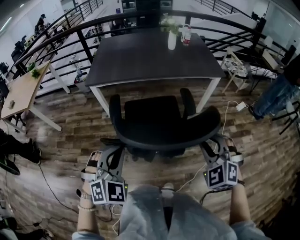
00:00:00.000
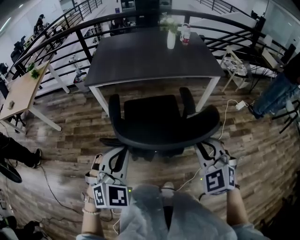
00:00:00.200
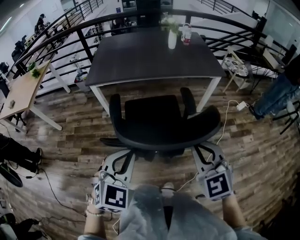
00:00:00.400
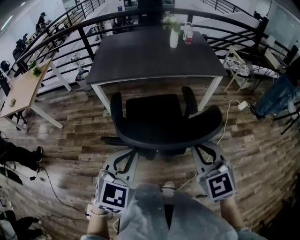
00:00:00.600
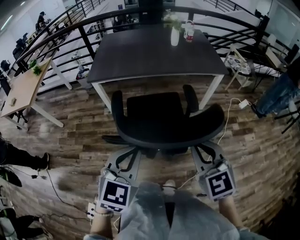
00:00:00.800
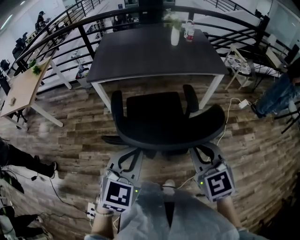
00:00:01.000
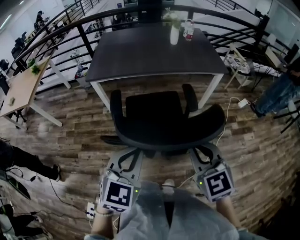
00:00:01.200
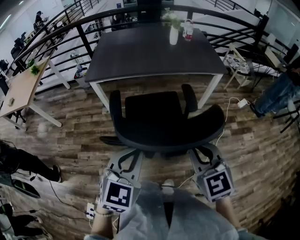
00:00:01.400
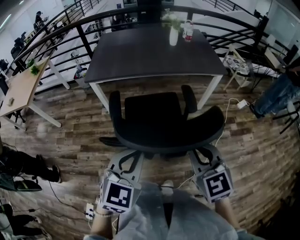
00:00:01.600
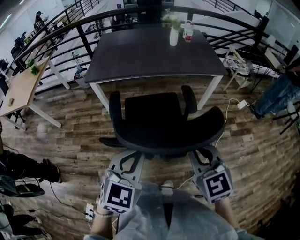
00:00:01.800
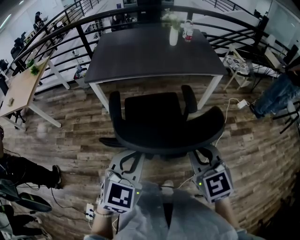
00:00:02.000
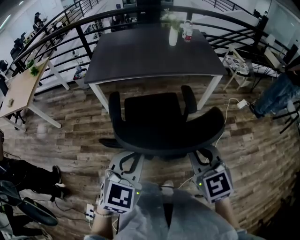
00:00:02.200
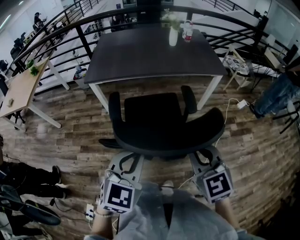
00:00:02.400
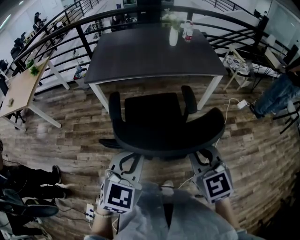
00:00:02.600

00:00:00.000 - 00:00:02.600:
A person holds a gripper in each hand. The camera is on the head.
00:00:00.000 - 00:00:01.200: The left gripper travels to the right by roughly 5 cm, and turns by about 30 degrees. The right gripper travels to the left by approximately 5 cm, turns by some 40 degrees, and closes.
00:00:01.200 - 00:00:02.600: Both grippers stay put.

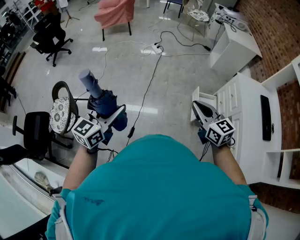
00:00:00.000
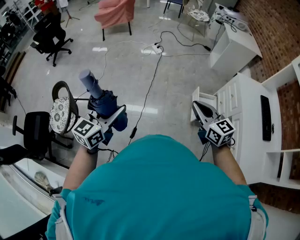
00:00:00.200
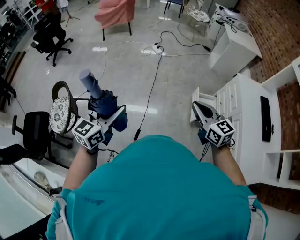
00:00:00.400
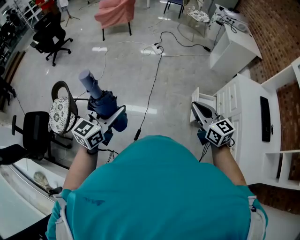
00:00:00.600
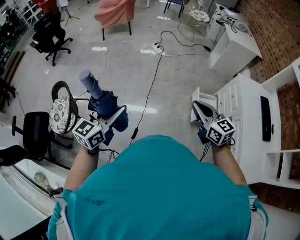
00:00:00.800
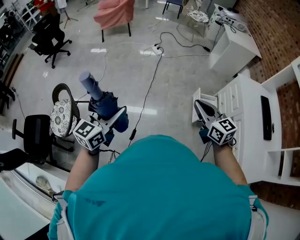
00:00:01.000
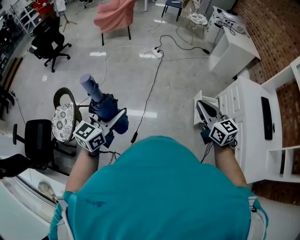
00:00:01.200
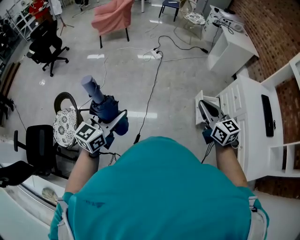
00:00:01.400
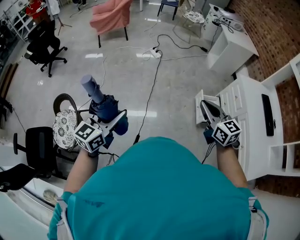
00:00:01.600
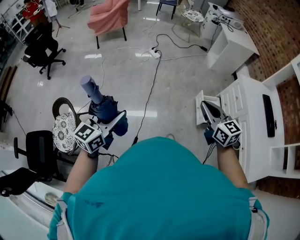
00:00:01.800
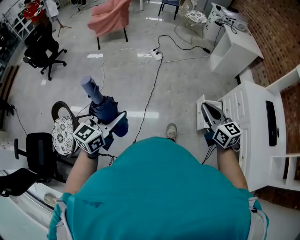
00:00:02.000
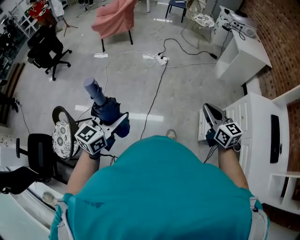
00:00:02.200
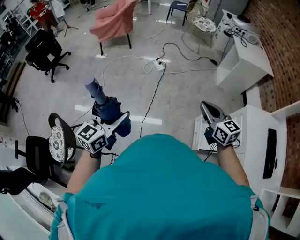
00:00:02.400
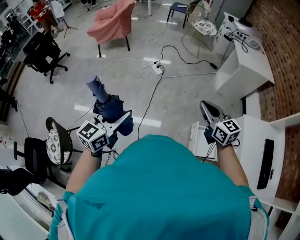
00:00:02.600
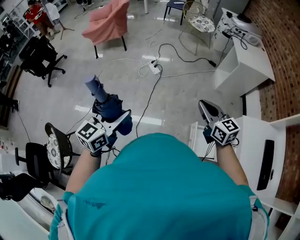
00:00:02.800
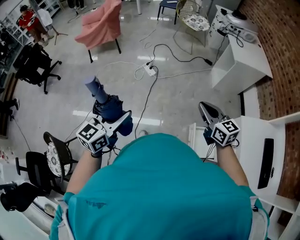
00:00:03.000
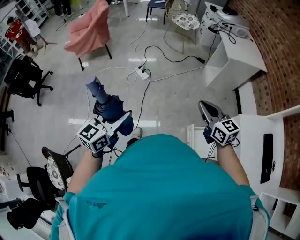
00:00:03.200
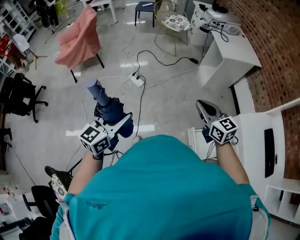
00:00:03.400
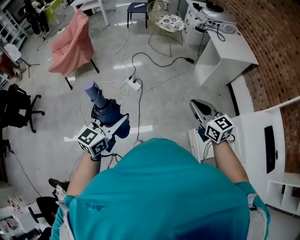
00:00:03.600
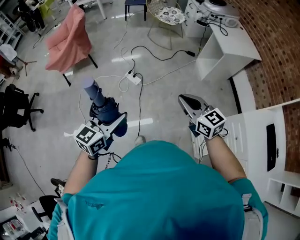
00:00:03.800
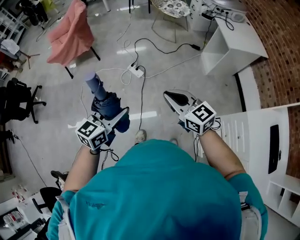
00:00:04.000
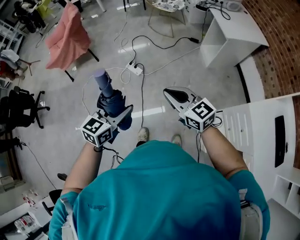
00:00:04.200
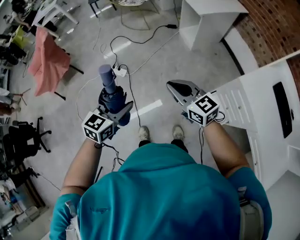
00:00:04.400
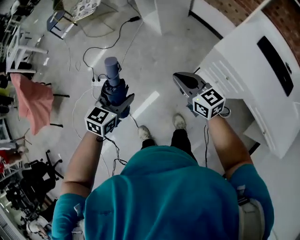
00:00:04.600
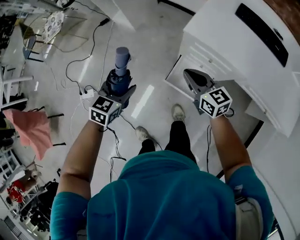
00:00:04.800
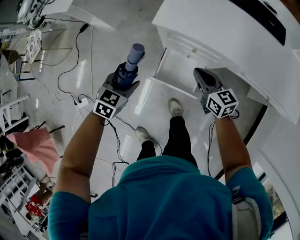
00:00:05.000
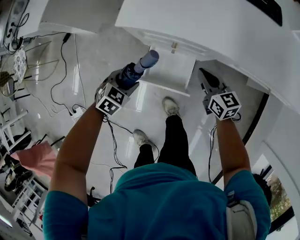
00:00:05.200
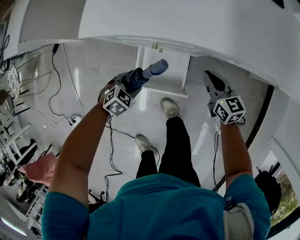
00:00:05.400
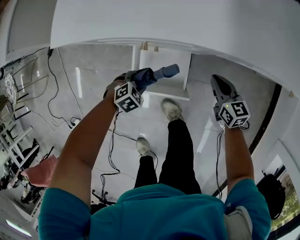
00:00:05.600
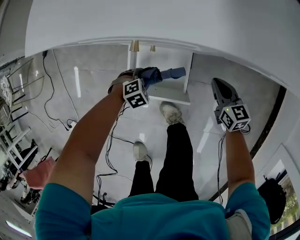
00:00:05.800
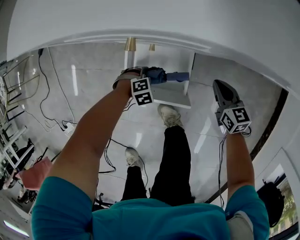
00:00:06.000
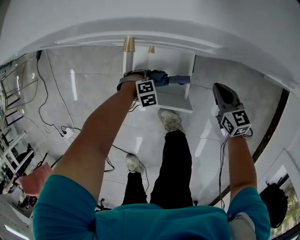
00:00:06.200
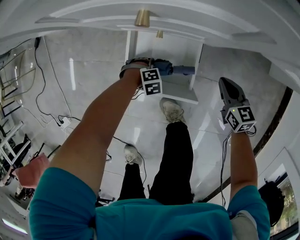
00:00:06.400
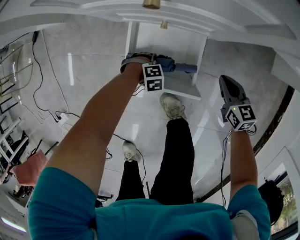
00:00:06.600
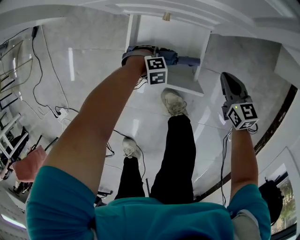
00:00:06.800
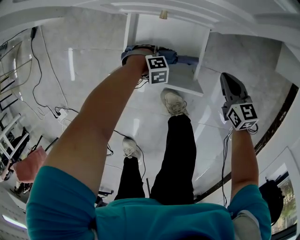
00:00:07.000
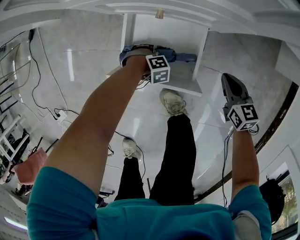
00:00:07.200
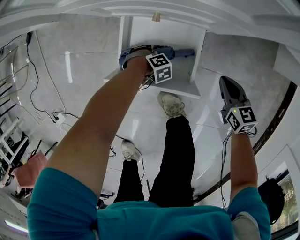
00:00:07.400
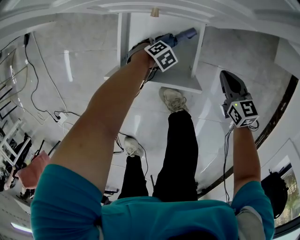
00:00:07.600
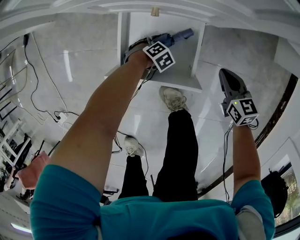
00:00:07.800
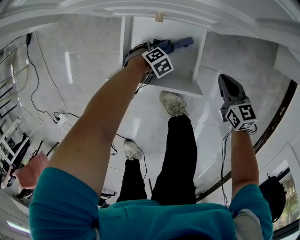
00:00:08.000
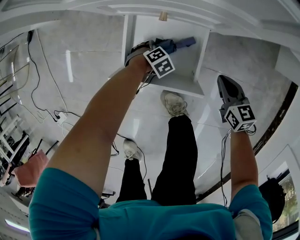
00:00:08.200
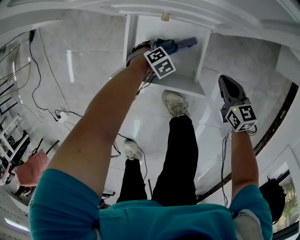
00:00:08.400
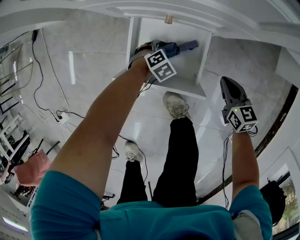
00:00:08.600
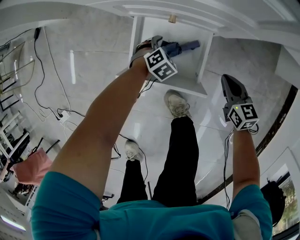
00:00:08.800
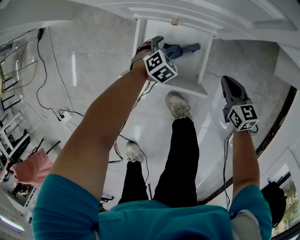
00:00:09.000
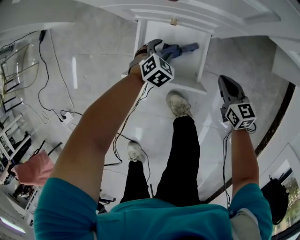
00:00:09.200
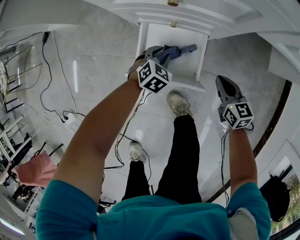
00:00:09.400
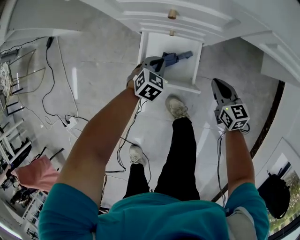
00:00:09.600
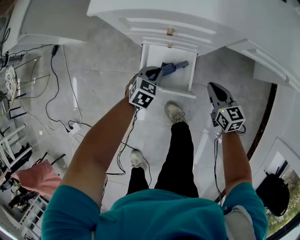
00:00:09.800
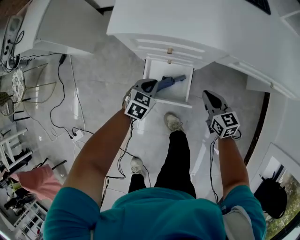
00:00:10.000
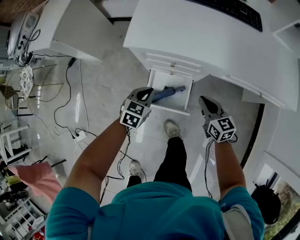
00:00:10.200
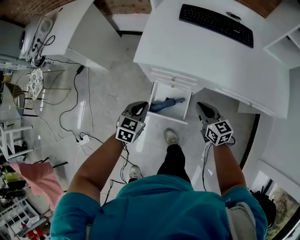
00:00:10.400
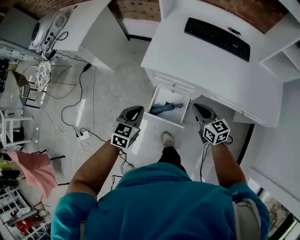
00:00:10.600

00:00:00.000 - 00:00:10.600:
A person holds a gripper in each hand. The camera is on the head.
00:00:00.000 - 00:00:01.600: The two grippers go roughly 10 cm to the left.
00:00:01.600 - 00:00:03.000: The pair of grippers is taken forward and to the right, about 50 cm.
00:00:03.000 - 00:00:04.600: The right gripper changes place by about 20 cm, and swivels roughly 30 degrees; the left gripper changes place by some 40 cm, and rotates about 50 degrees.
00:00:04.600 - 00:00:06.000: The two grippers travel together, some 50 cm. Both grippers travel together downward, about 60 cm. The left gripper angles its fingers downward, by approximately 50 degrees. Meanwhile the right gripper turns by some 60 degrees.
00:00:06.000 - 00:00:07.600: The left gripper travels downward by roughly 10 cm, and turns by roughly 20 degrees, while the right gripper goes about 5 cm downward.
00:00:07.600 - 00:00:09.000: The left gripper travels upward by about 10 cm, and swivels some 30 degrees.
00:00:09.000 - 00:00:10.600: Both grippers travel together upward, approximately 50 cm. The left gripper rotates roughly 40 degrees, and closes.

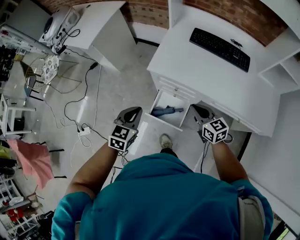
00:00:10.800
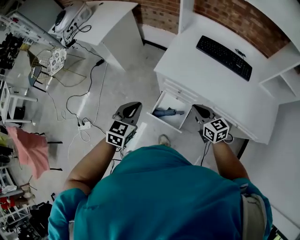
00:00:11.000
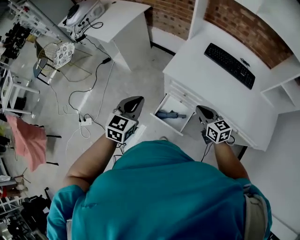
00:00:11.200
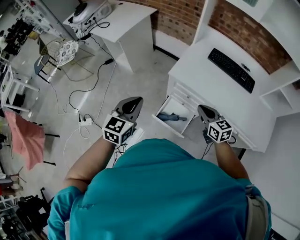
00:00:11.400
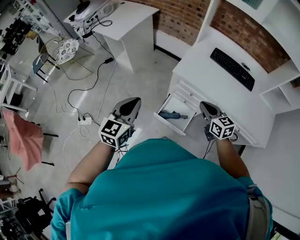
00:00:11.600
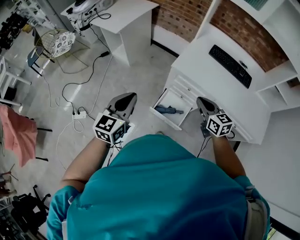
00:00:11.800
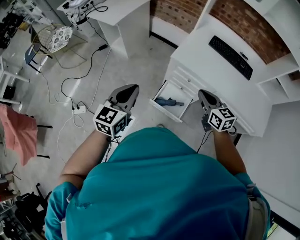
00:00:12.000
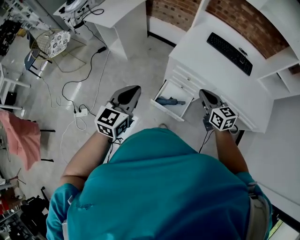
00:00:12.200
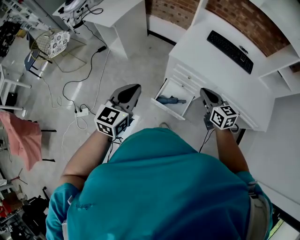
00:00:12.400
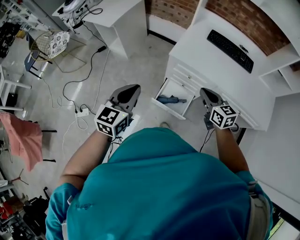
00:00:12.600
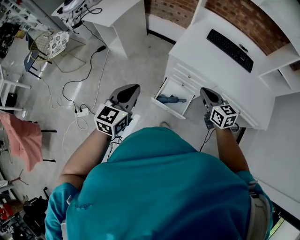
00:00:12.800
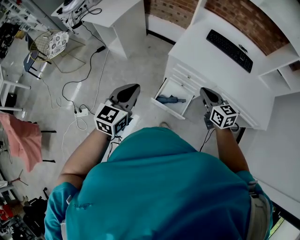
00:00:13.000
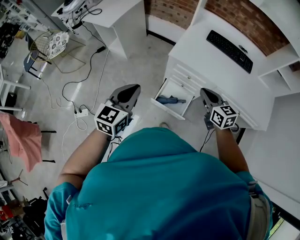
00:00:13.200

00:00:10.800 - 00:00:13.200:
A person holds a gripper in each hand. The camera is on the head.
00:00:10.800 - 00:00:12.000: The right gripper goes roughly 15 cm upward and to the left. The left gripper heads to the left, upward and backward, covering some 20 cm, and swivels some 20 degrees.
00:00:12.000 - 00:00:13.200: The grippers stay close to where they were, moving slightly.

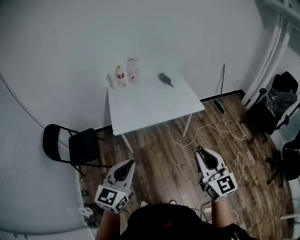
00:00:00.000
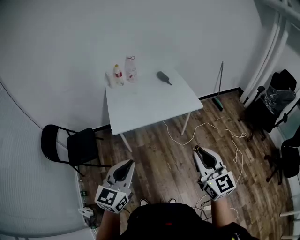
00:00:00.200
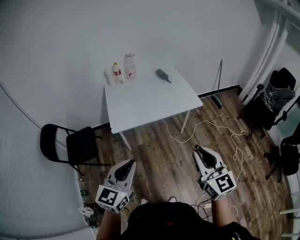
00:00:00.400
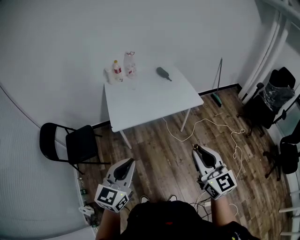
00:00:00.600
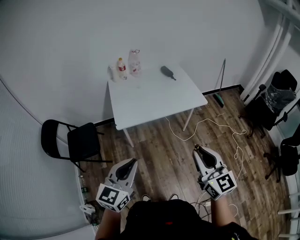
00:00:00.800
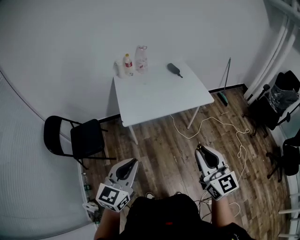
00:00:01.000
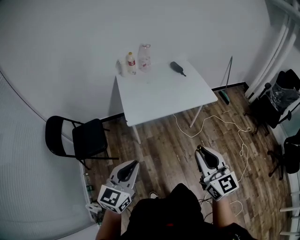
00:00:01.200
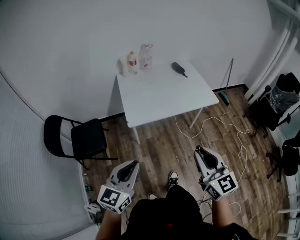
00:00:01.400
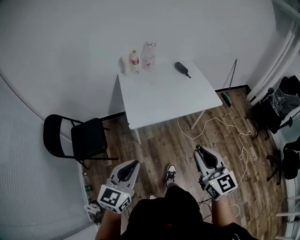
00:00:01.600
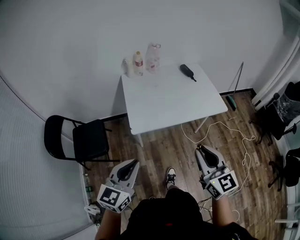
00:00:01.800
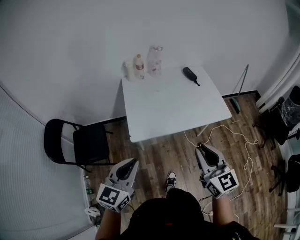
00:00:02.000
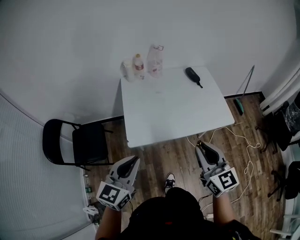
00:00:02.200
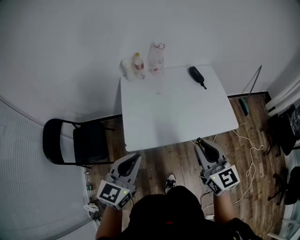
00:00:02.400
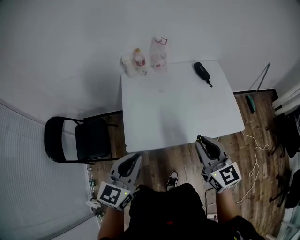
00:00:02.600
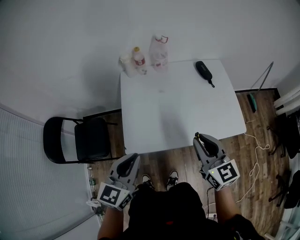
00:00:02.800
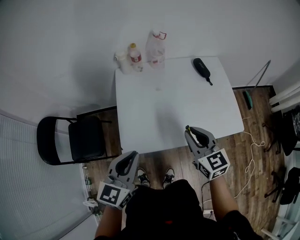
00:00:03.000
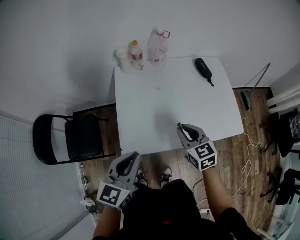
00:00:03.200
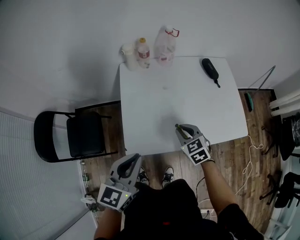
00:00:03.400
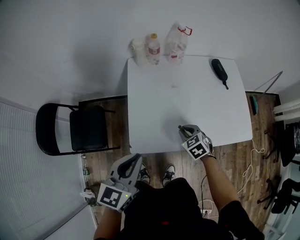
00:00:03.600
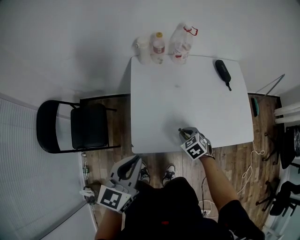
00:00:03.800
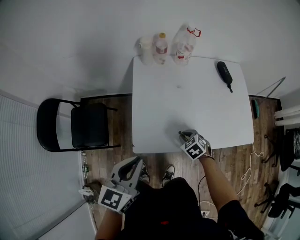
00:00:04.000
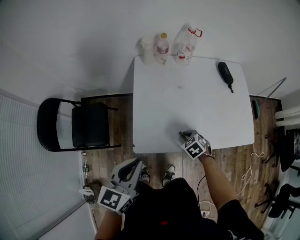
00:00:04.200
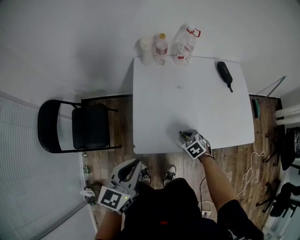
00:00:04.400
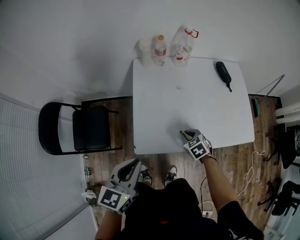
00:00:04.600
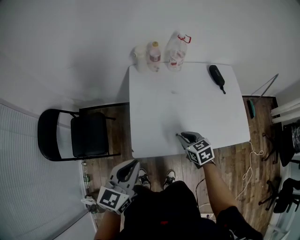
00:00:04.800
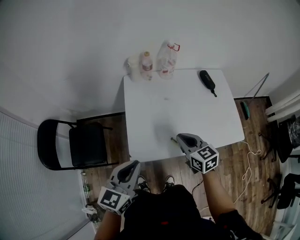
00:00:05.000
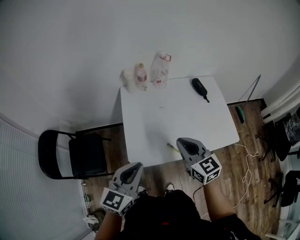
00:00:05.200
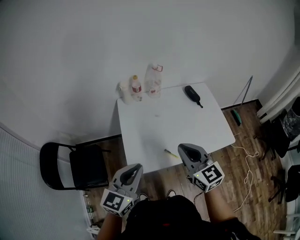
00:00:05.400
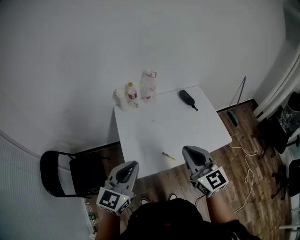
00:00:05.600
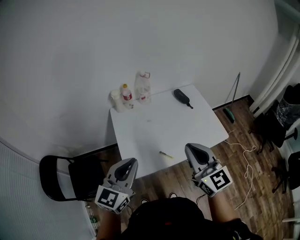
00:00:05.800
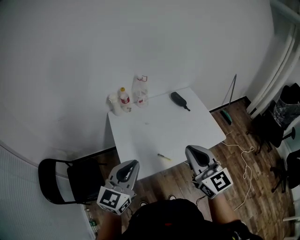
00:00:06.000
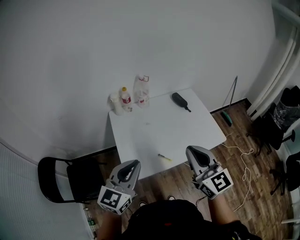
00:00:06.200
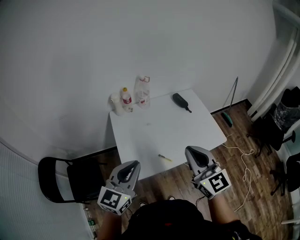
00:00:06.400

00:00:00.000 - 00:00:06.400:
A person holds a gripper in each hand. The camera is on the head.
00:00:00.000 - 00:00:01.600: The two grippers go about 15 cm to the left.
00:00:01.600 - 00:00:03.200: The left gripper is displaced forward by some 35 cm, while the right gripper is displaced forward and downward by approximately 50 cm, and changes its angle by some 30 degrees.
00:00:03.200 - 00:00:04.800: The left gripper goes some 10 cm to the left. The right gripper goes roughly 10 cm downward and to the left.
00:00:04.800 - 00:00:06.400: The left gripper shifts roughly 15 cm upward and to the right, and rotates some 30 degrees. Meanwhile the right gripper goes some 35 cm upward, and angles its fingers upward, by roughly 40 degrees.
